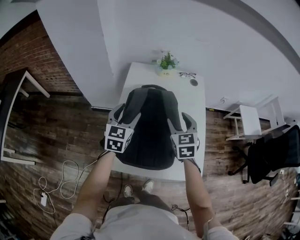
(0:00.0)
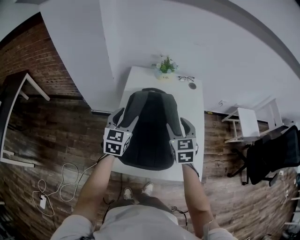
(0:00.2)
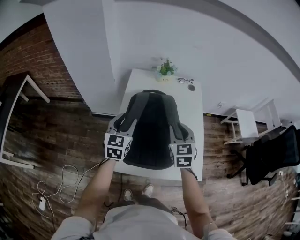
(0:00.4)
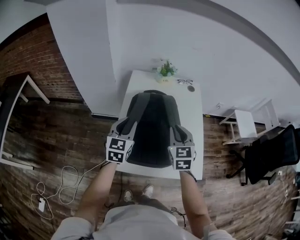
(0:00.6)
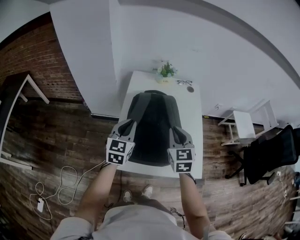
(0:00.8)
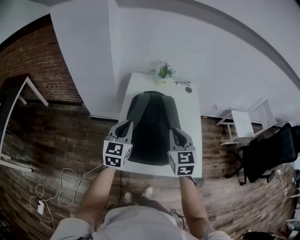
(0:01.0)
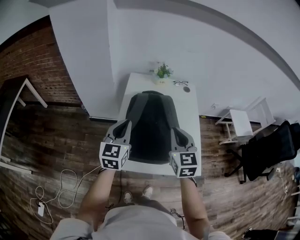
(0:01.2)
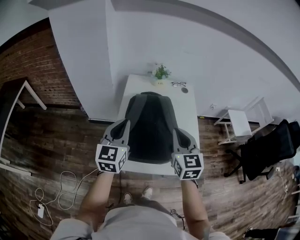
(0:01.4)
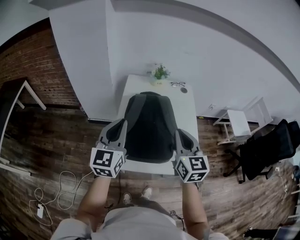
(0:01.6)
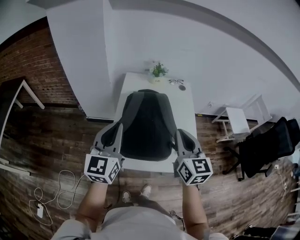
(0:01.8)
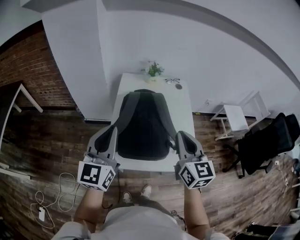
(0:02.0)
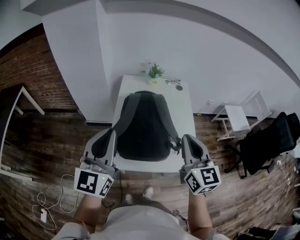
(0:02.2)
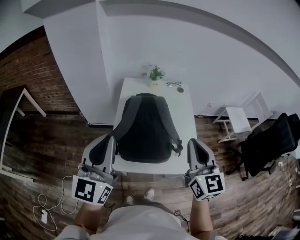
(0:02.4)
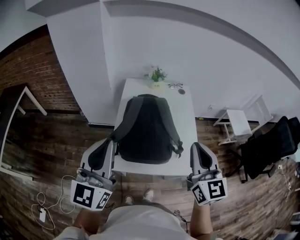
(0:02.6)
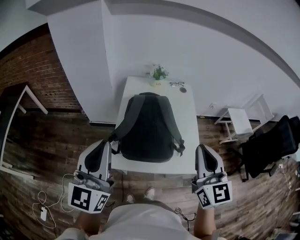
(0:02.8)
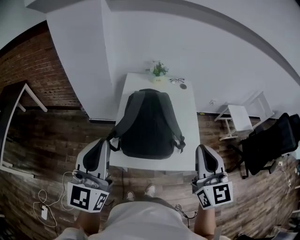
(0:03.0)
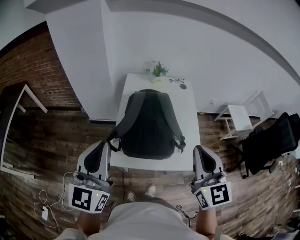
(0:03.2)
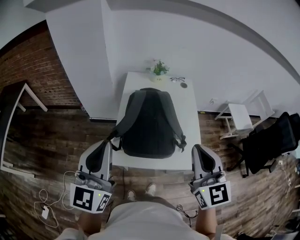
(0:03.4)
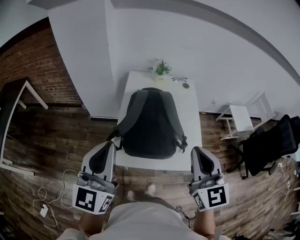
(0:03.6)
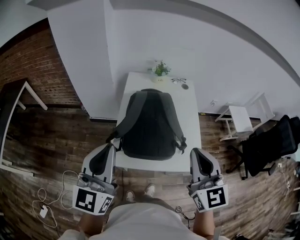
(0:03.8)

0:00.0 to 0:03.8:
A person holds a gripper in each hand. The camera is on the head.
0:00.0 to 0:01.2: Both grippers move backward and upward, about 15 cm. The left gripper closes up. The right gripper closes.
0:01.2 to 0:02.6: The left gripper heads upward and backward, covering some 20 cm, while the right gripper travels backward, upward and to the right by some 20 cm.
0:02.6 to 0:03.8: There are only small adjustments of the grippers.

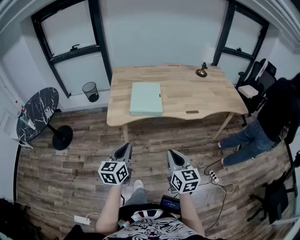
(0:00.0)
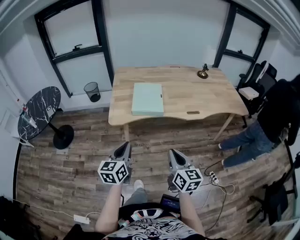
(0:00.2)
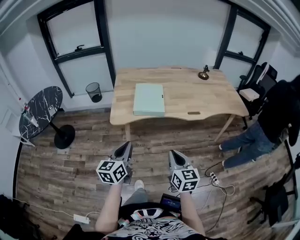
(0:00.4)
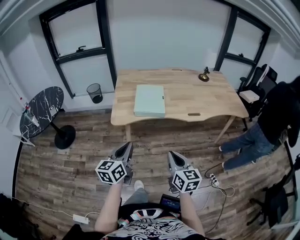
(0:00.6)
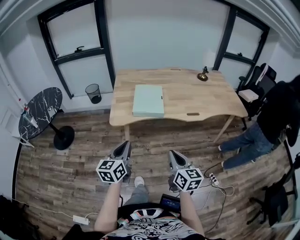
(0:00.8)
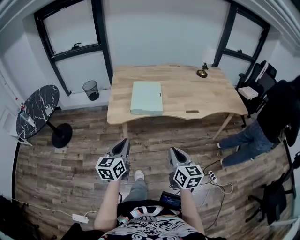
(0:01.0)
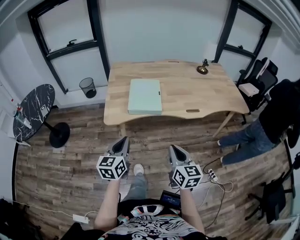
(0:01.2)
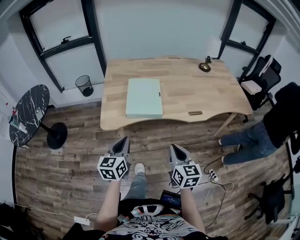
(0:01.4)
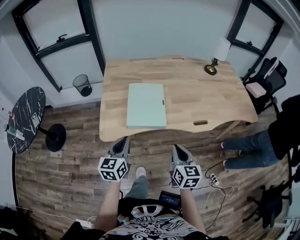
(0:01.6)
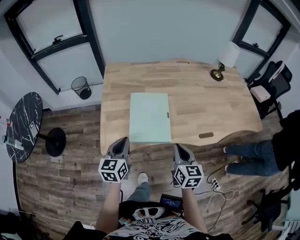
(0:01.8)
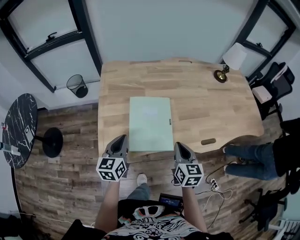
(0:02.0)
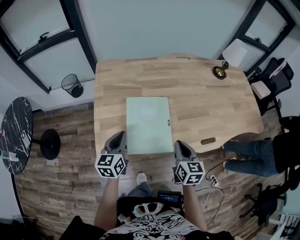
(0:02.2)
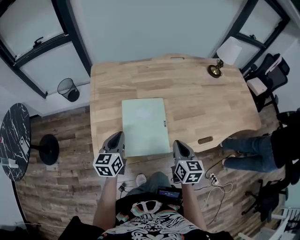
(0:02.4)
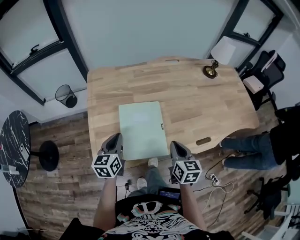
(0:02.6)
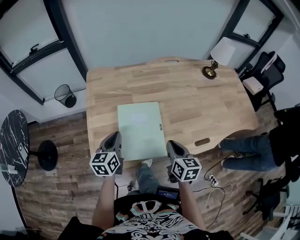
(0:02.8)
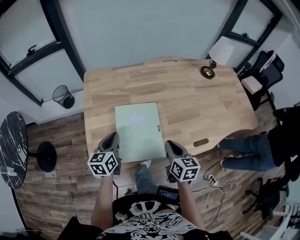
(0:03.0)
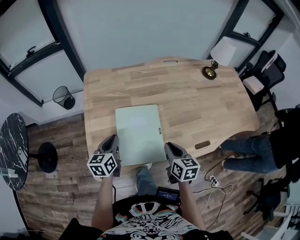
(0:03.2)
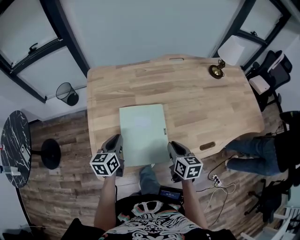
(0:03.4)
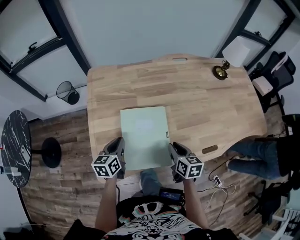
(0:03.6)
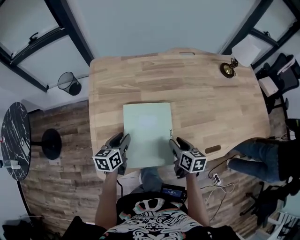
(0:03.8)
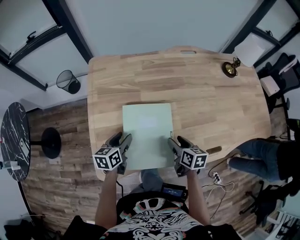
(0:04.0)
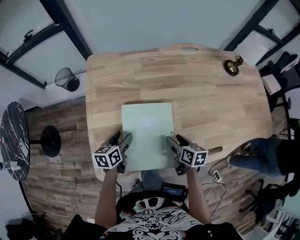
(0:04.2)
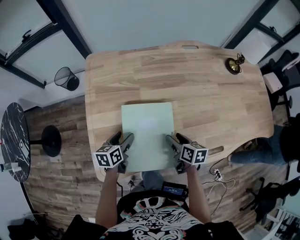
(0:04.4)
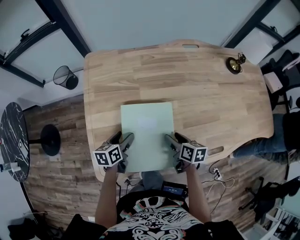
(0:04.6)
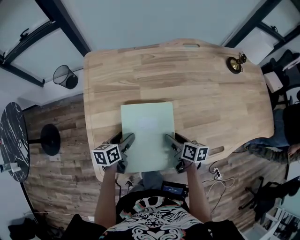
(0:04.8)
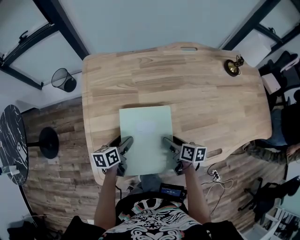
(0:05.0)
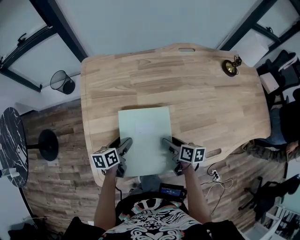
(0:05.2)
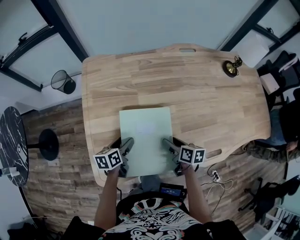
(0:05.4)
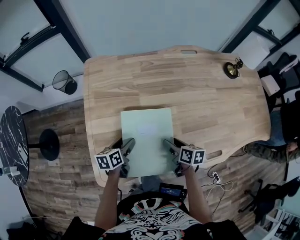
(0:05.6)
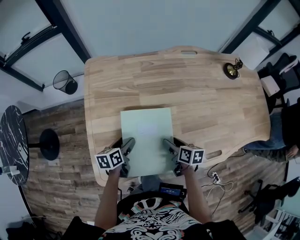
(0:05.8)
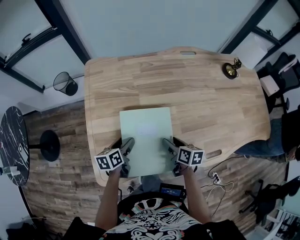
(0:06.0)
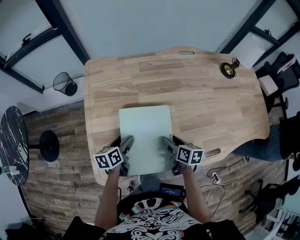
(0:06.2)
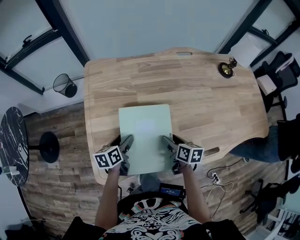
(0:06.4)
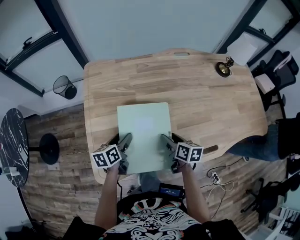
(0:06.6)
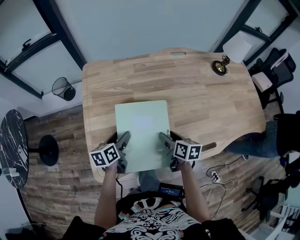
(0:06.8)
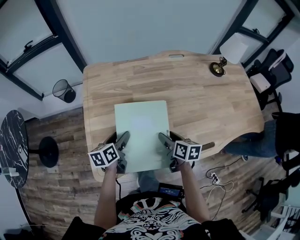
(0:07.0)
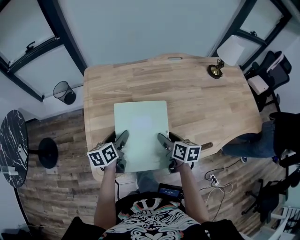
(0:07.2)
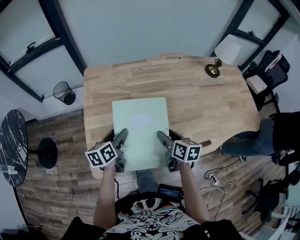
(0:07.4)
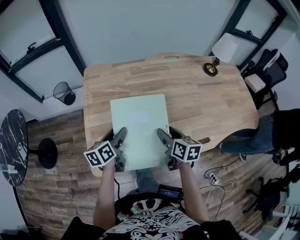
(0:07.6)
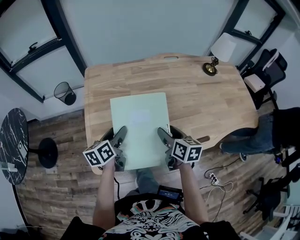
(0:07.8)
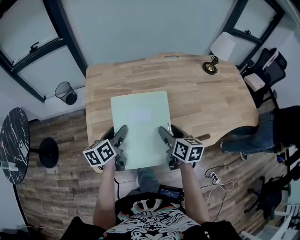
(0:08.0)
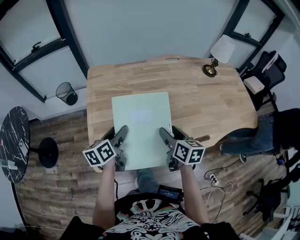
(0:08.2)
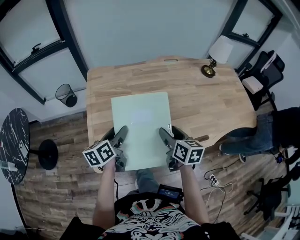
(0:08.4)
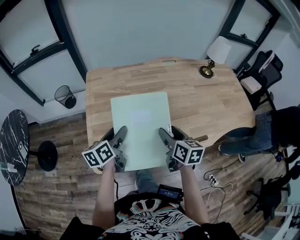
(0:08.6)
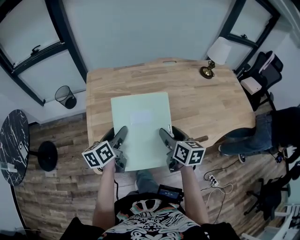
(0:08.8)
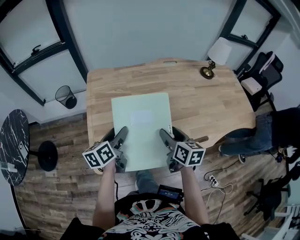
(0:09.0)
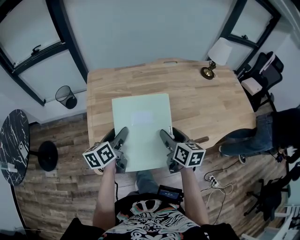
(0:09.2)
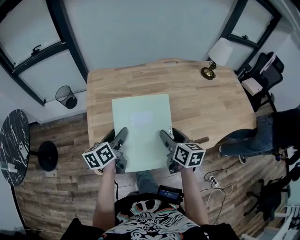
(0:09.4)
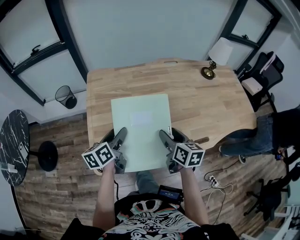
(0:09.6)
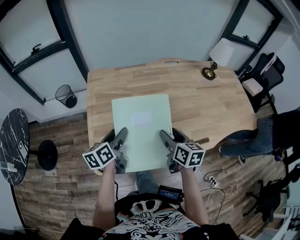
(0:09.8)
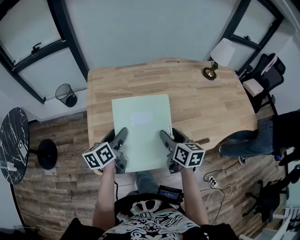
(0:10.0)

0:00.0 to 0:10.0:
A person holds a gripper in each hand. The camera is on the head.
0:00.0 to 0:01.4: The two grippers go approximately 10 cm forward.
0:01.4 to 0:02.8: The two grippers go approximately 30 cm forward.
0:02.8 to 0:04.2: Both grippers move downward and forward, roughly 15 cm. The right gripper turns by about 20 degrees, and opens its fingers. Meanwhile the left gripper turns by roughly 20 degrees, and opens.
0:04.2 to 0:05.8: The grippers make only small movements.
0:05.8 to 0:07.2: Both grippers travel together upward, about 10 cm.
0:07.2 to 0:08.6: The two grippers go some 10 cm upward.
0:08.6 to 0:10.0: Neither gripper changes place.

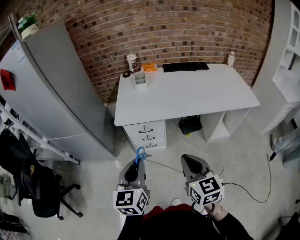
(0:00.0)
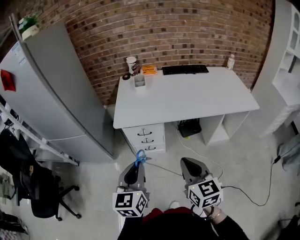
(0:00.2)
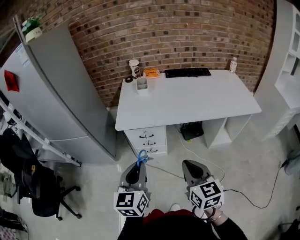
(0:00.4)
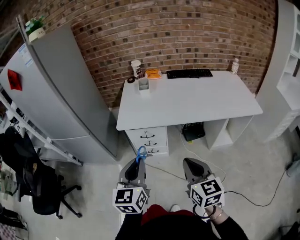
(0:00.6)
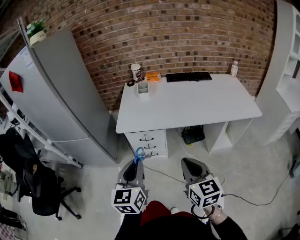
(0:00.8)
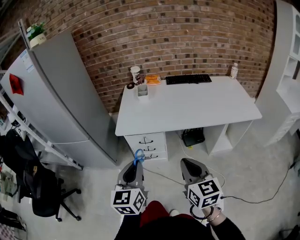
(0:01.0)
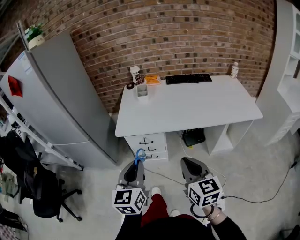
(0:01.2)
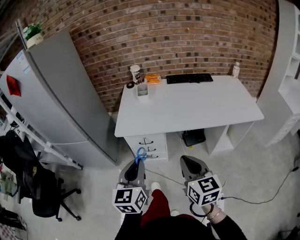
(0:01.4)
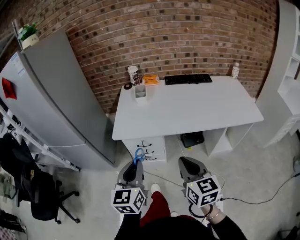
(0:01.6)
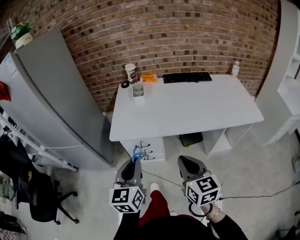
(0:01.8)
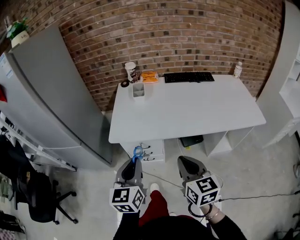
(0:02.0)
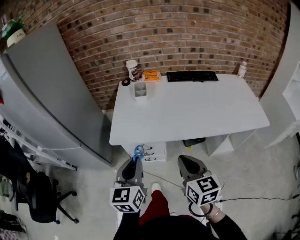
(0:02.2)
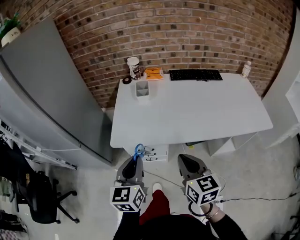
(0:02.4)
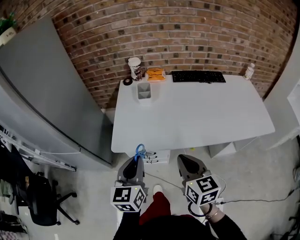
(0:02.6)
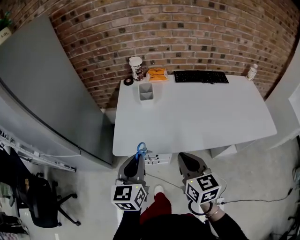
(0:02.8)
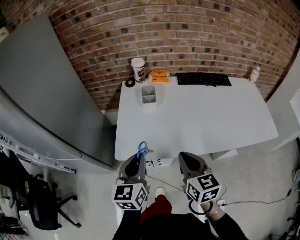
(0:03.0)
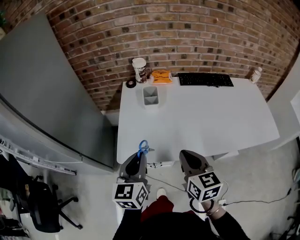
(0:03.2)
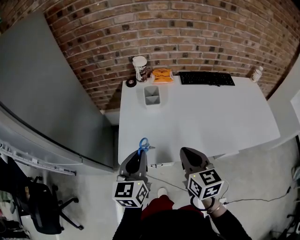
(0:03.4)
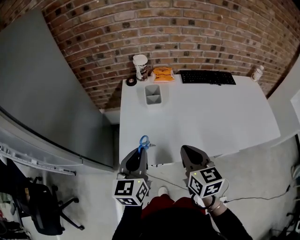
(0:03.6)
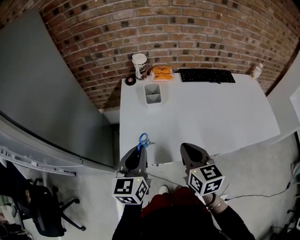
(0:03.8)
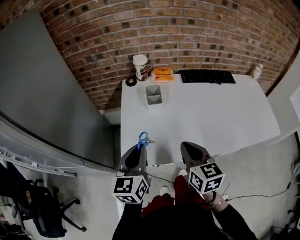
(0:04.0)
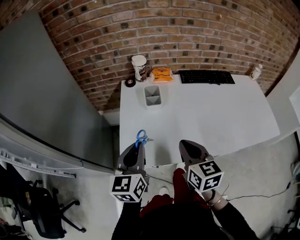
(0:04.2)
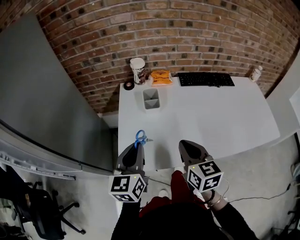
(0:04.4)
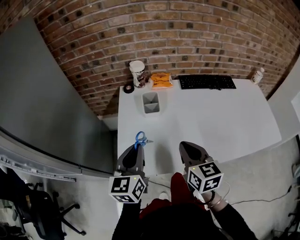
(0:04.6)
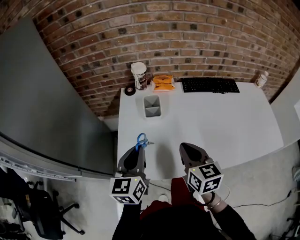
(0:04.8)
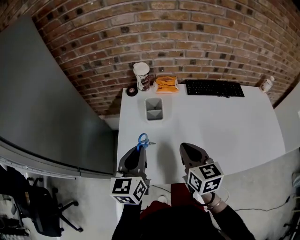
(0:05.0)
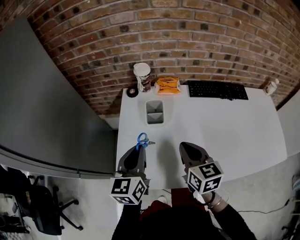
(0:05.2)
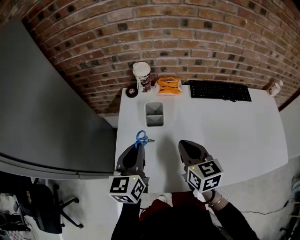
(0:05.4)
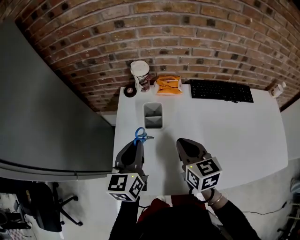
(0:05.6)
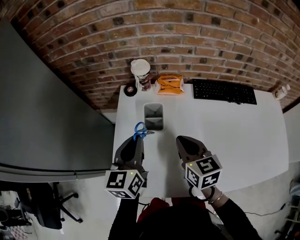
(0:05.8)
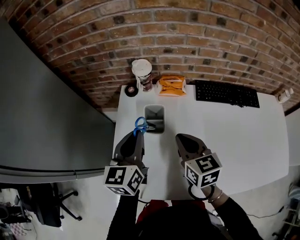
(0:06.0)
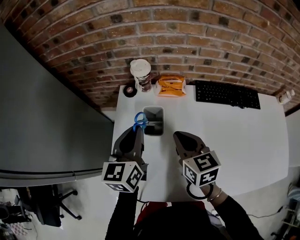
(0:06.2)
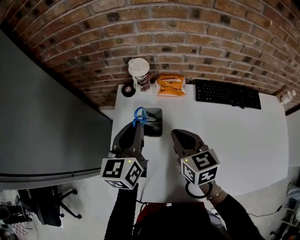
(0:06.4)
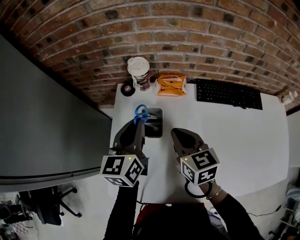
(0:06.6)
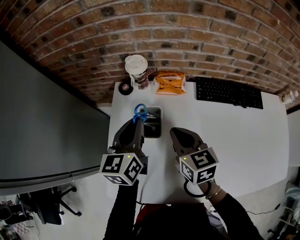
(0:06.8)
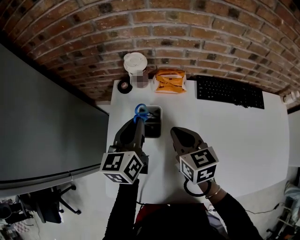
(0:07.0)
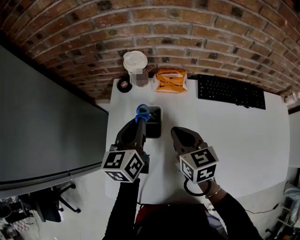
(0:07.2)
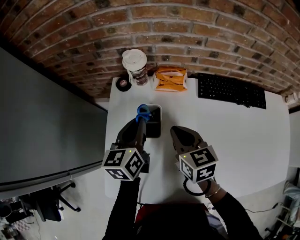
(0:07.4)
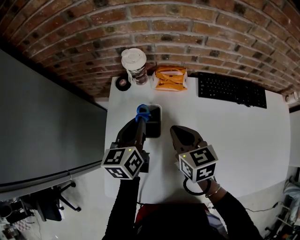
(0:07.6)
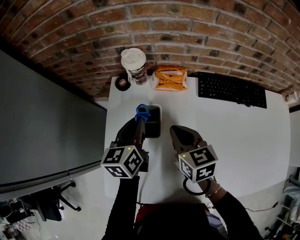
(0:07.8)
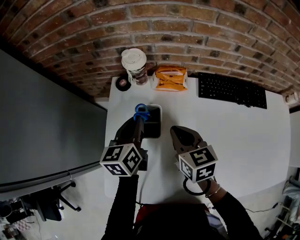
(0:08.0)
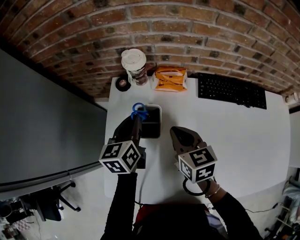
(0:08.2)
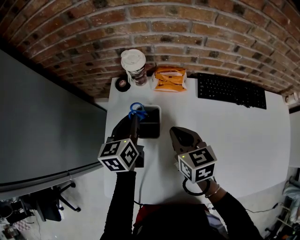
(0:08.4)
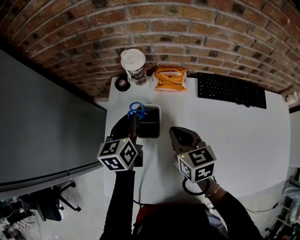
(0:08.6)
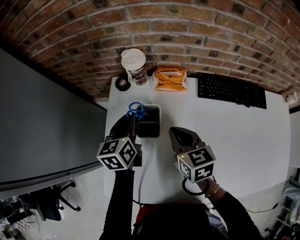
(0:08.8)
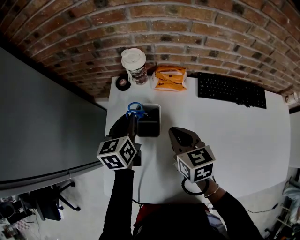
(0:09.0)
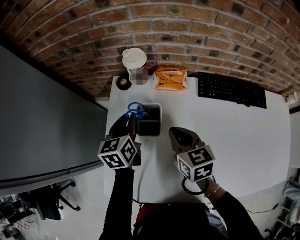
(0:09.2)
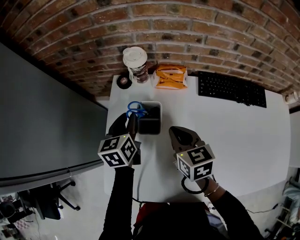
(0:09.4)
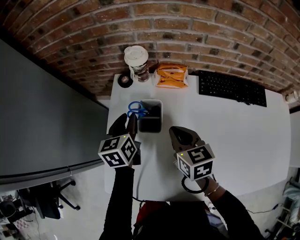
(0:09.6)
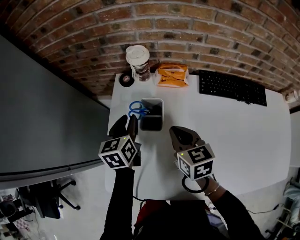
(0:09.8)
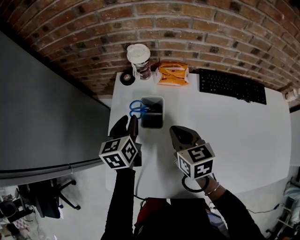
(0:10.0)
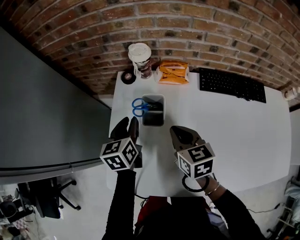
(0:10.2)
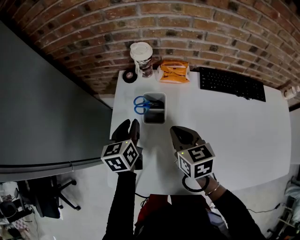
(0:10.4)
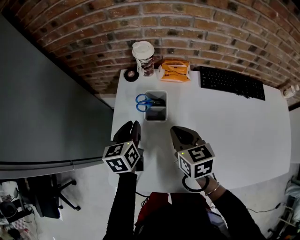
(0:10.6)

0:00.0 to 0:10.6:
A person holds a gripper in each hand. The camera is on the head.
0:00.0 to 0:01.6: Both grippers move forward, approximately 5 cm.
0:01.6 to 0:03.0: The grippers both shift forward by roughly 25 cm.
0:03.0 to 0:04.6: The two grippers go approximately 10 cm forward.
0:04.6 to 0:06.0: The two grippers go approximately 20 cm forward.
0:06.0 to 0:07.6: The left gripper shifts about 10 cm forward and downward; the right gripper travels forward by roughly 5 cm.
0:07.6 to 0:09.0: The grippers stay close to where they were, moving slightly.
0:09.0 to 0:10.6: The two grippers go approximately 5 cm backward.
